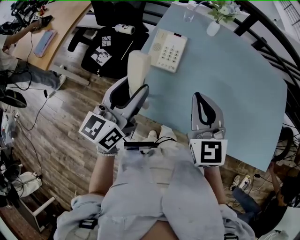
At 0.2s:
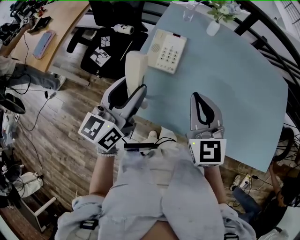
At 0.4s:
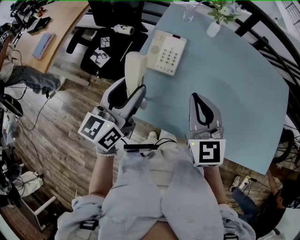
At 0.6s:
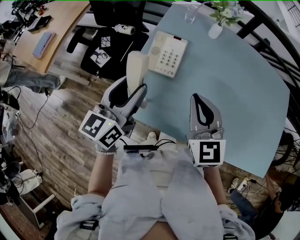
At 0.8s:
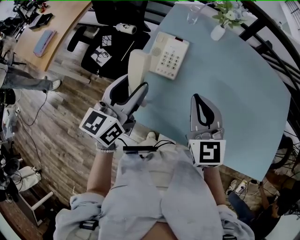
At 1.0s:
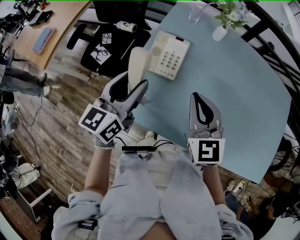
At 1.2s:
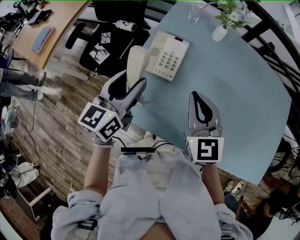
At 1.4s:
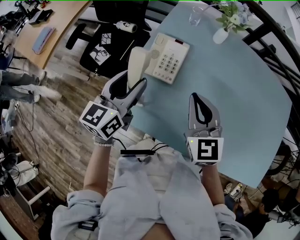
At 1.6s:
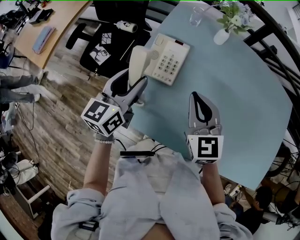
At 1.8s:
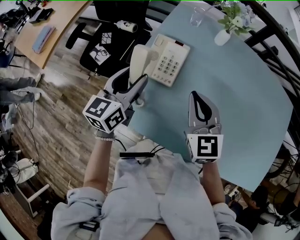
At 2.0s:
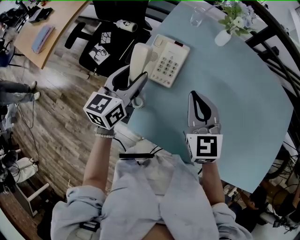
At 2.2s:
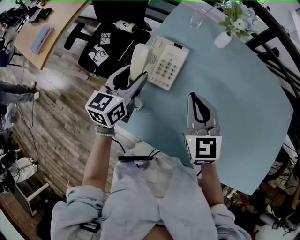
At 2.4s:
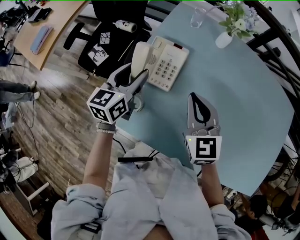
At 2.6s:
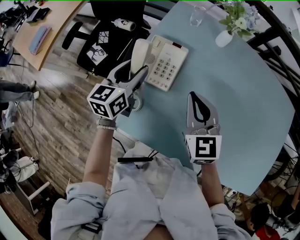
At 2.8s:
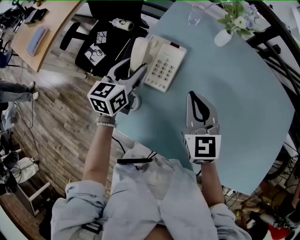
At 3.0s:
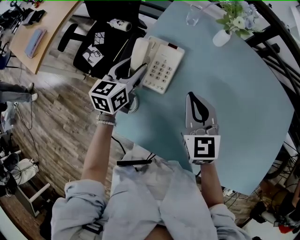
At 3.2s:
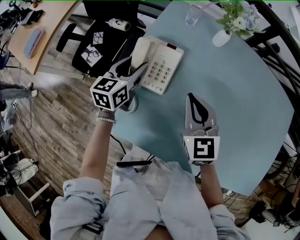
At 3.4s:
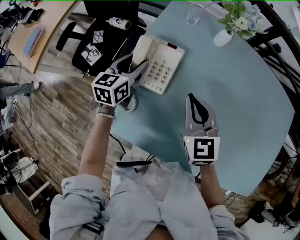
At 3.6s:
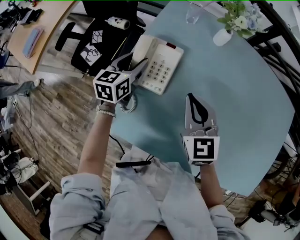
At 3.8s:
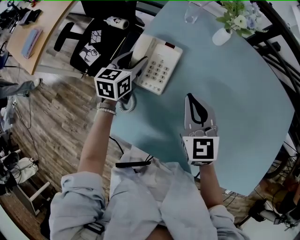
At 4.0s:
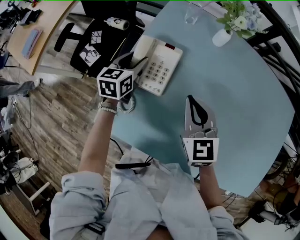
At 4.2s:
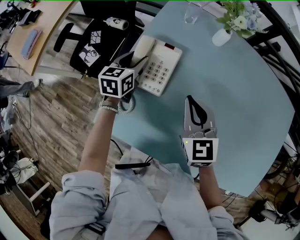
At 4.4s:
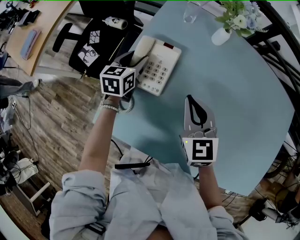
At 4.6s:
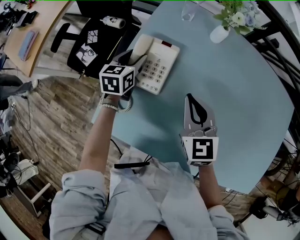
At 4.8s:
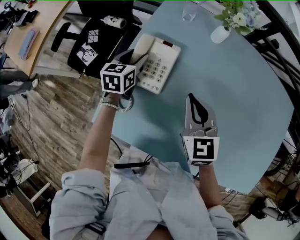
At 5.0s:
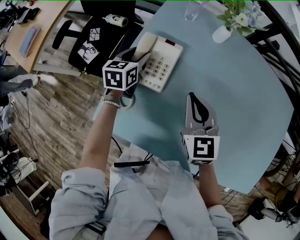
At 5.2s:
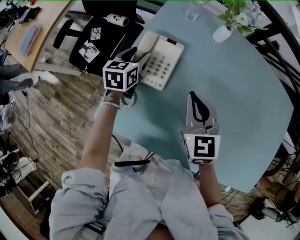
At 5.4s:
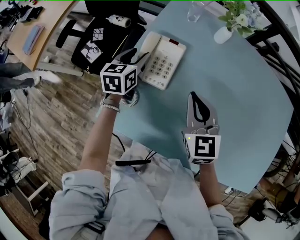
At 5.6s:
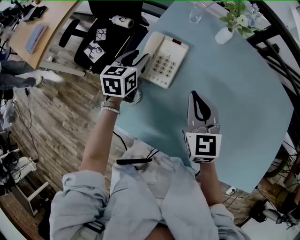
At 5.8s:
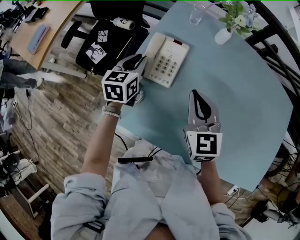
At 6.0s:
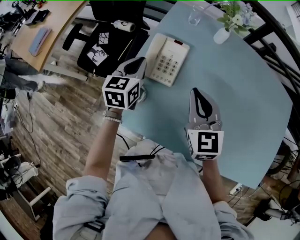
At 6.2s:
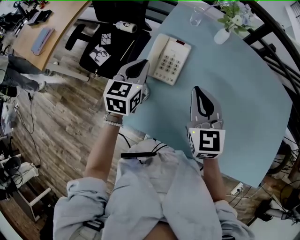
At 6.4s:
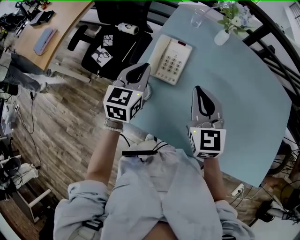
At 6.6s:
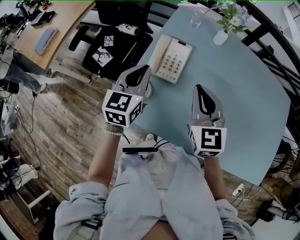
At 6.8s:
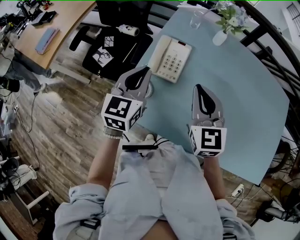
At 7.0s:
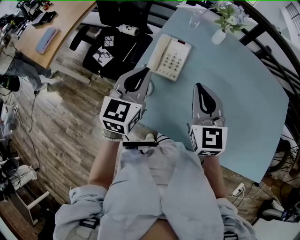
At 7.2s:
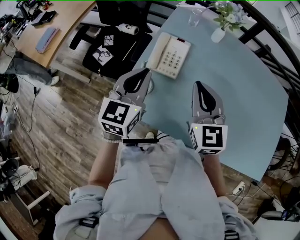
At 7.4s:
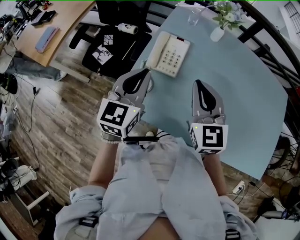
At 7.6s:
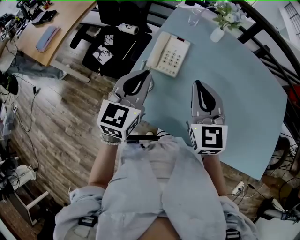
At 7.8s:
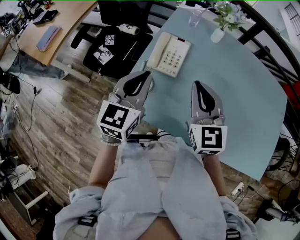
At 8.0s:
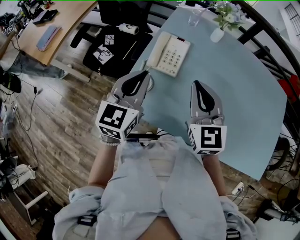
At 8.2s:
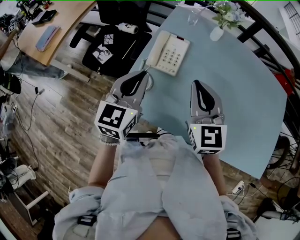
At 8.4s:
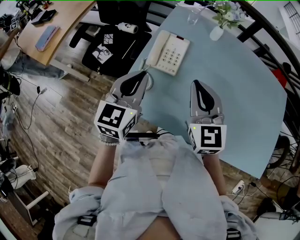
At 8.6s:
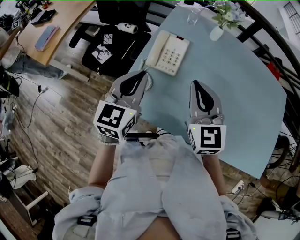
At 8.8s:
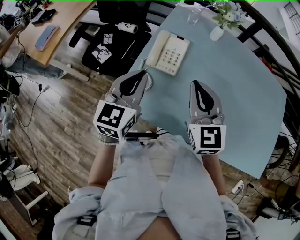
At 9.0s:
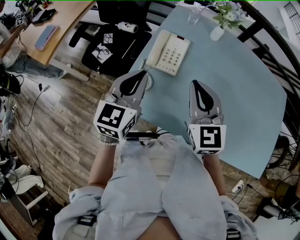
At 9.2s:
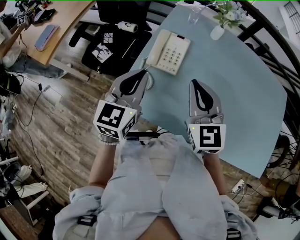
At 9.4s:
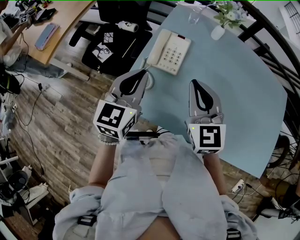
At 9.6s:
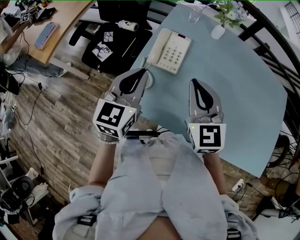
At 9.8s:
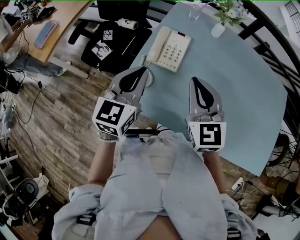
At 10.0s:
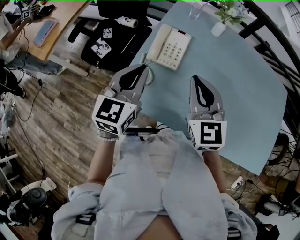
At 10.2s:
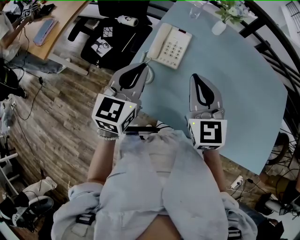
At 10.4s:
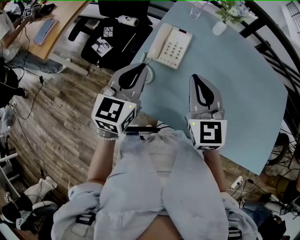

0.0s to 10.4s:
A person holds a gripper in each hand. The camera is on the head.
0.0s to 1.4s: The left gripper travels forward and downward by some 10 cm; the right gripper shifts some 10 cm forward.
1.4s to 3.0s: The left gripper travels forward and downward by about 15 cm, while the right gripper is displaced forward by roughly 5 cm.
3.0s to 4.4s: The left gripper is displaced downward and forward by approximately 10 cm.
4.4s to 6.0s: The left gripper shifts approximately 10 cm upward and backward, and closes its fingers. The right gripper is displaced upward by approximately 5 cm.
6.0s to 7.4s: The right gripper moves upward and backward, about 10 cm; the left gripper heads backward and upward, covering some 20 cm.
7.4s to 9.0s: There are only small adjustments of the grippers.
9.0s to 10.4s: Both grippers stay about where they are.

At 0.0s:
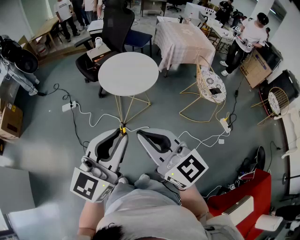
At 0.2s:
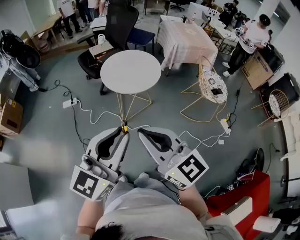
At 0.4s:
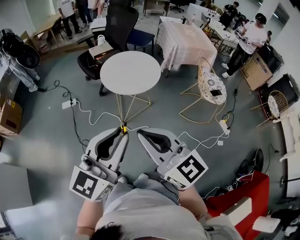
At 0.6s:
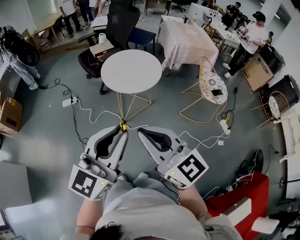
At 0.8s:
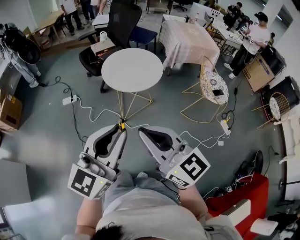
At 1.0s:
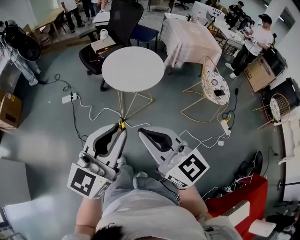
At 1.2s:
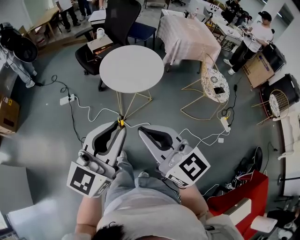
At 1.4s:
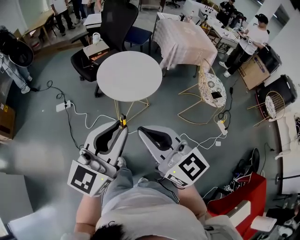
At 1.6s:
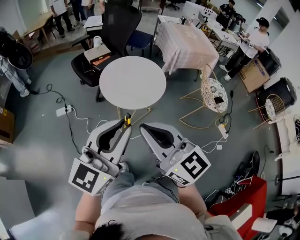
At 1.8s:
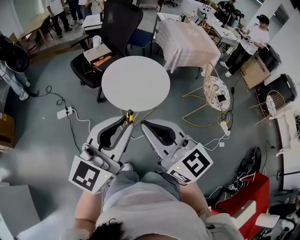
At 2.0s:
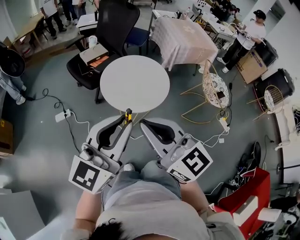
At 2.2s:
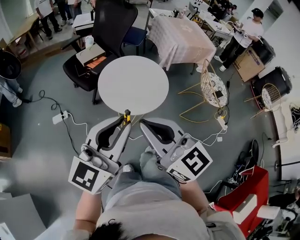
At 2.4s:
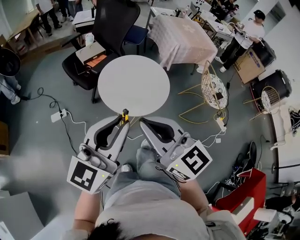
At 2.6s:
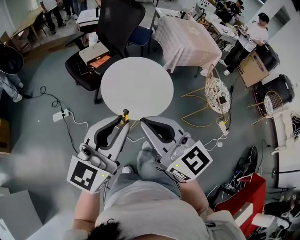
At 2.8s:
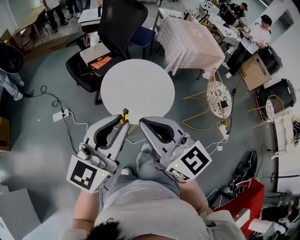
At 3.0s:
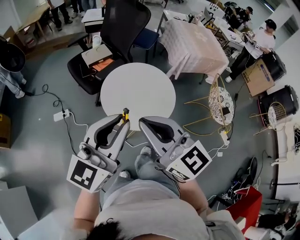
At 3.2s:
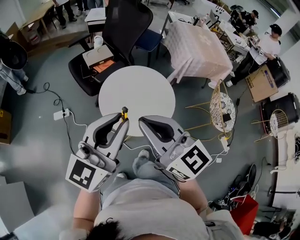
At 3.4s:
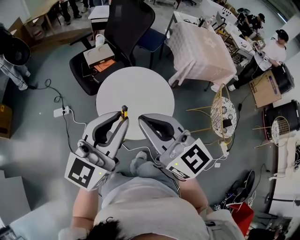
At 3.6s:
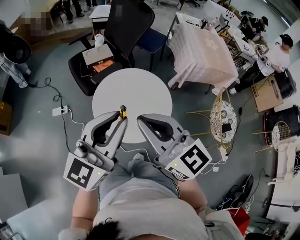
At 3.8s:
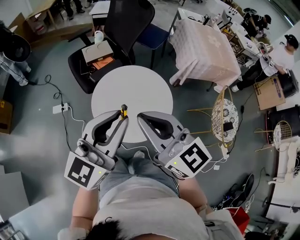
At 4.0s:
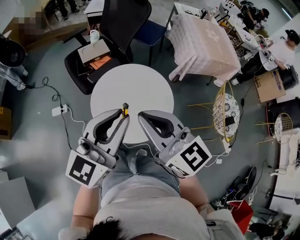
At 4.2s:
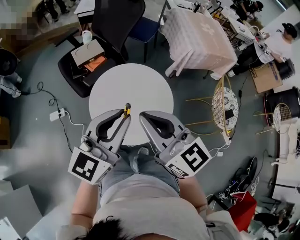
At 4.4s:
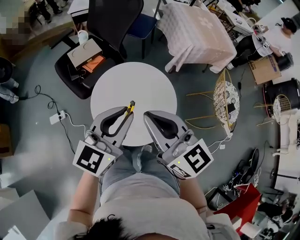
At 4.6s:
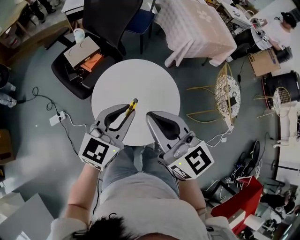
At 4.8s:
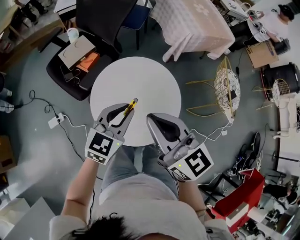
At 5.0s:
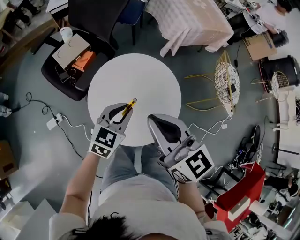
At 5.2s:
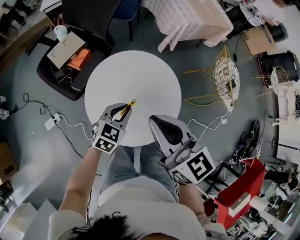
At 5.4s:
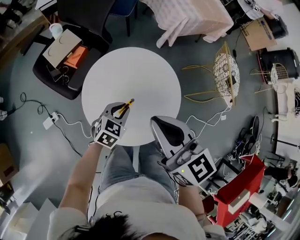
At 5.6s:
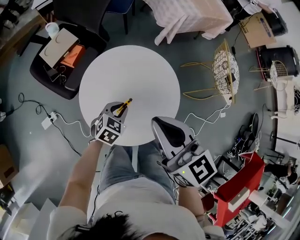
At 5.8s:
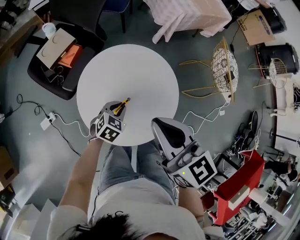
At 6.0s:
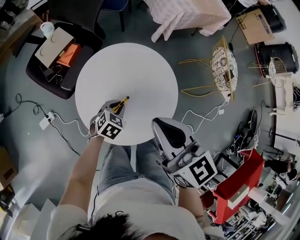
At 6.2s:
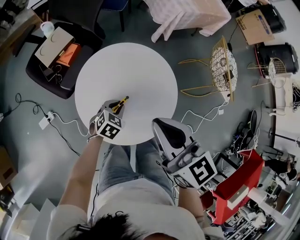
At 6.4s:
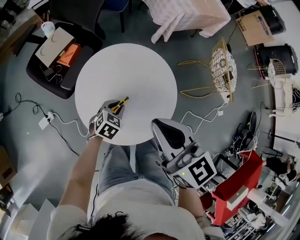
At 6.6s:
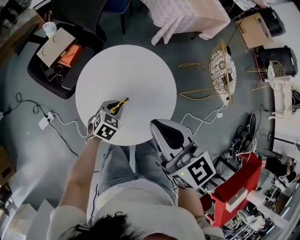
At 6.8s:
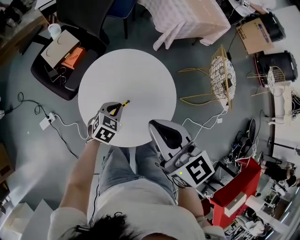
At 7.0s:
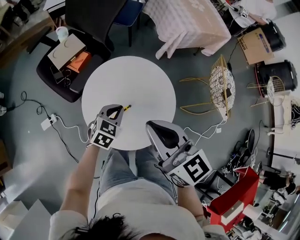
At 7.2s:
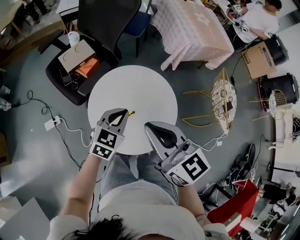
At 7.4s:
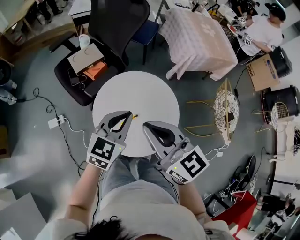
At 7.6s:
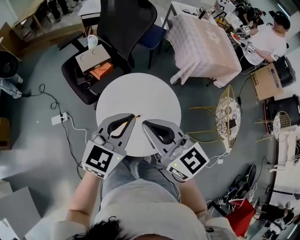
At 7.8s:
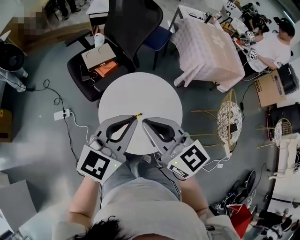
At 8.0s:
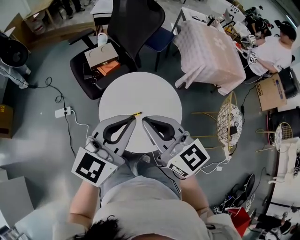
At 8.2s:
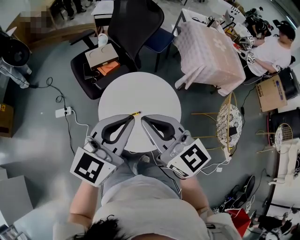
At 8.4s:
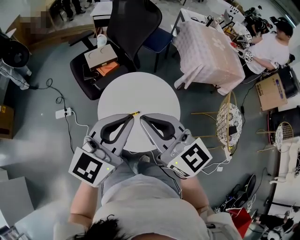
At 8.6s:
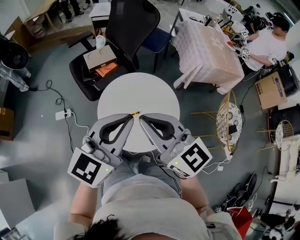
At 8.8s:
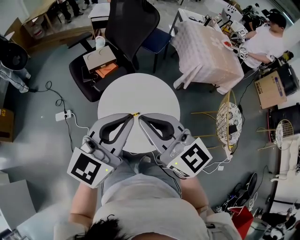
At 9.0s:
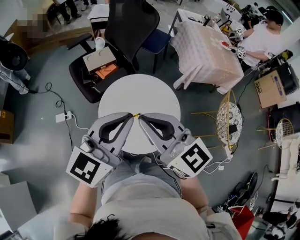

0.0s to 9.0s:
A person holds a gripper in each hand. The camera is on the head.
0.0s to 1.6s: The grippers both shift forward by approximately 15 cm.
1.6s to 3.0s: The grippers both shift forward by roughly 20 cm.
3.0s to 4.4s: The left gripper travels forward, downward and to the right by about 20 cm; the right gripper is displaced forward and to the right by some 20 cm.
4.4s to 6.0s: The right gripper heads downward, covering some 10 cm, and swivels roughly 20 degrees. Meanwhile the left gripper moves downward, roughly 35 cm, and tilts its fingers roughly 50 degrees downward.
6.0s to 7.6s: The right gripper travels upward by roughly 5 cm, and swivels some 30 degrees. Meanwhile the left gripper moves upward, about 35 cm, and points its fingers some 40 degrees further upward.
7.6s to 9.0s: The right gripper heads upward, covering some 5 cm. Meanwhile the left gripper is displaced upward and backward by approximately 10 cm.

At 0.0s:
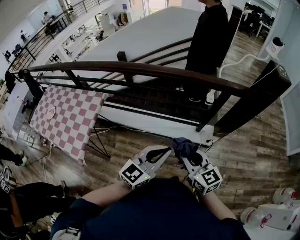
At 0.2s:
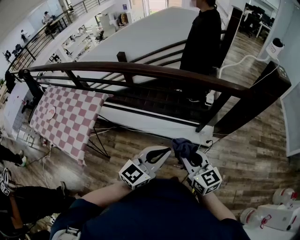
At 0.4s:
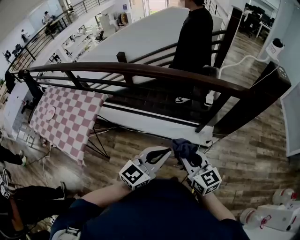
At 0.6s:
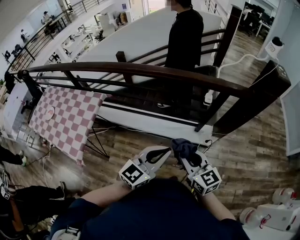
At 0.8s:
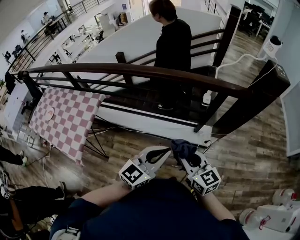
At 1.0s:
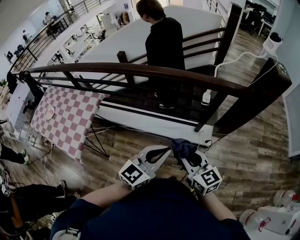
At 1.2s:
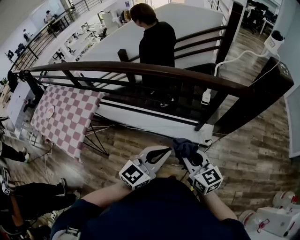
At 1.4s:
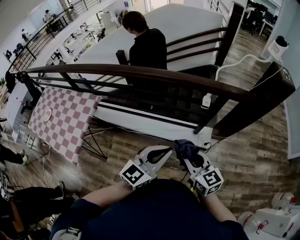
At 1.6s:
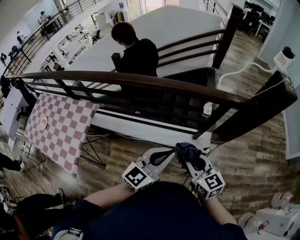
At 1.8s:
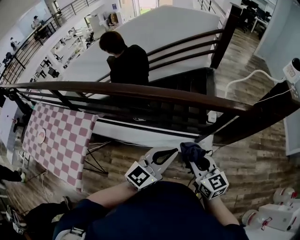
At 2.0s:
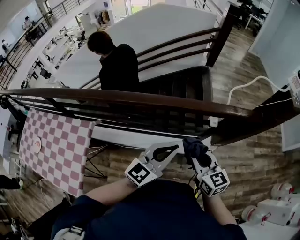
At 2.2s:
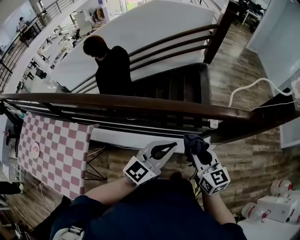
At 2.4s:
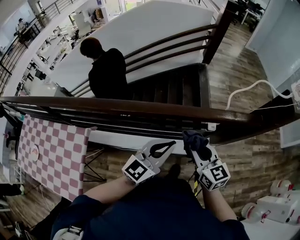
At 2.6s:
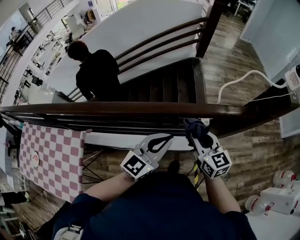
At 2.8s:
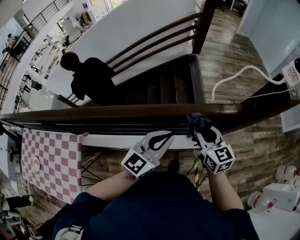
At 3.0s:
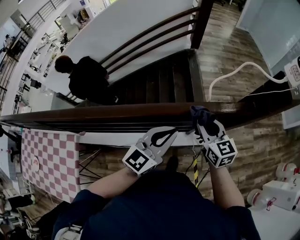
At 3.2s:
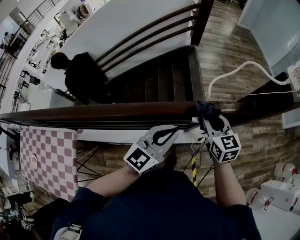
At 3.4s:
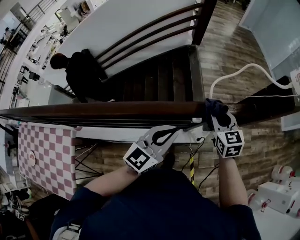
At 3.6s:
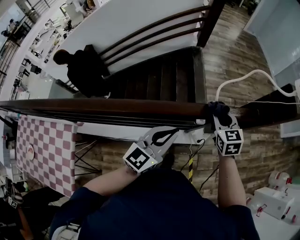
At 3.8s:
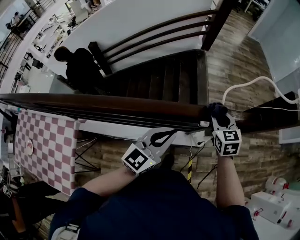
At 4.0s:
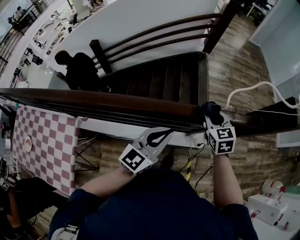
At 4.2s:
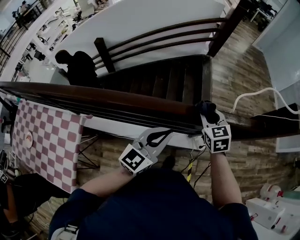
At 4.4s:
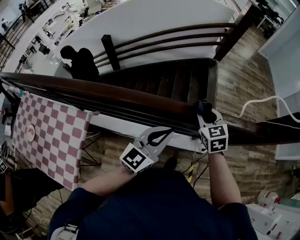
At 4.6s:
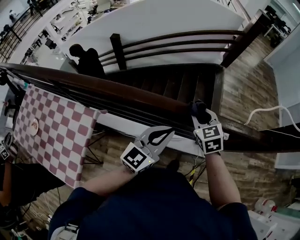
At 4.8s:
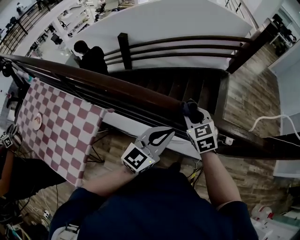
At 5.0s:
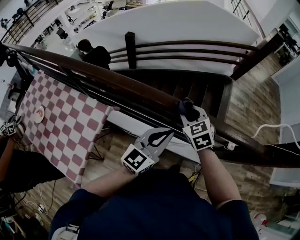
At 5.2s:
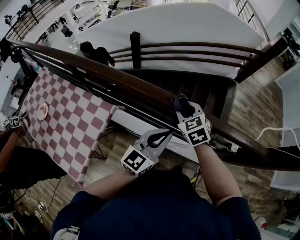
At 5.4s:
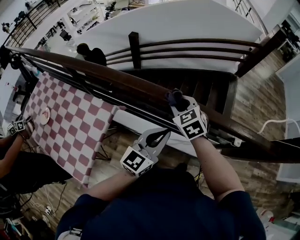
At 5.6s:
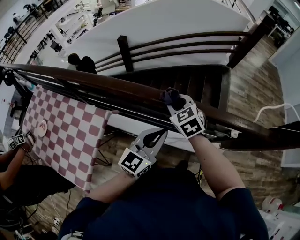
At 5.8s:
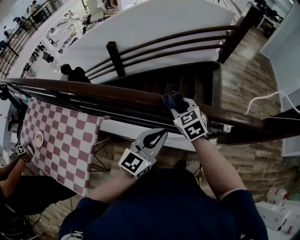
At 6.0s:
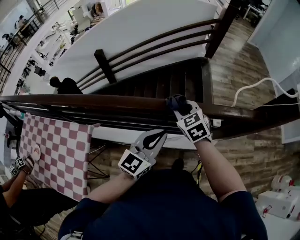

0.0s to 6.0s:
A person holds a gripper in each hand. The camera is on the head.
0.0s to 1.6s: Both grippers move forward, approximately 10 cm.
1.6s to 3.0s: Both grippers move forward, approximately 30 cm. The right gripper swivels approximately 20 degrees.
3.0s to 4.4s: Both grippers travel together to the left, approximately 20 cm. The right gripper rotates about 30 degrees.
4.4s to 6.0s: The right gripper moves approximately 30 cm to the left and comes back. The left gripper reaches approximately 15 cm to the left, then returns.
